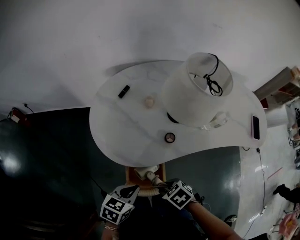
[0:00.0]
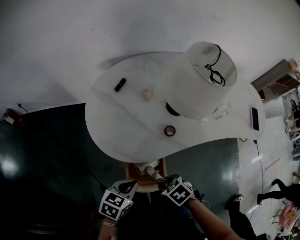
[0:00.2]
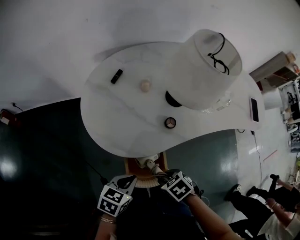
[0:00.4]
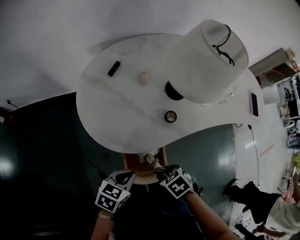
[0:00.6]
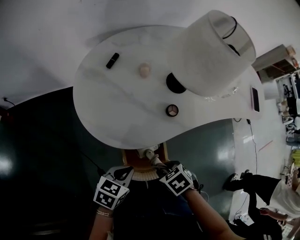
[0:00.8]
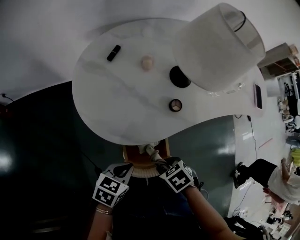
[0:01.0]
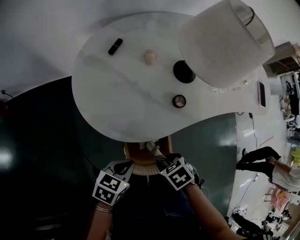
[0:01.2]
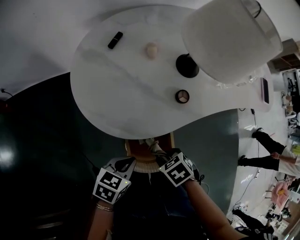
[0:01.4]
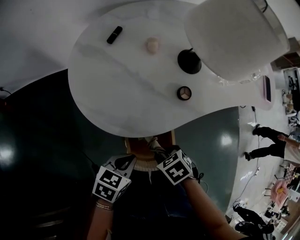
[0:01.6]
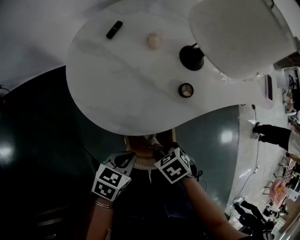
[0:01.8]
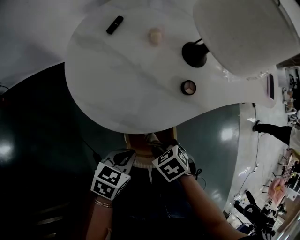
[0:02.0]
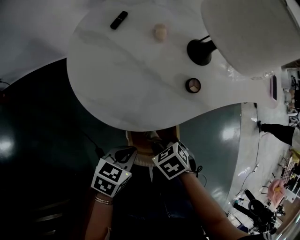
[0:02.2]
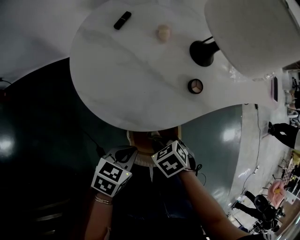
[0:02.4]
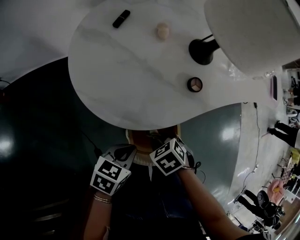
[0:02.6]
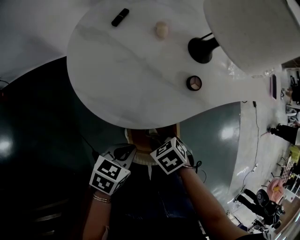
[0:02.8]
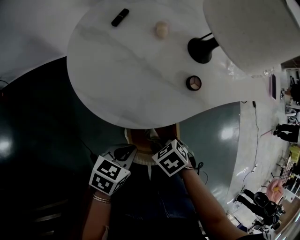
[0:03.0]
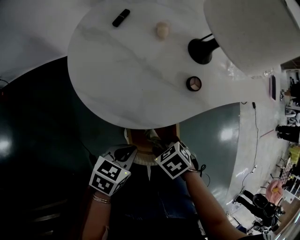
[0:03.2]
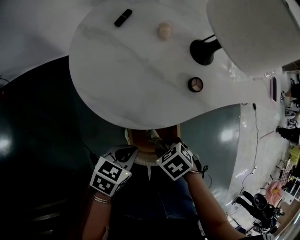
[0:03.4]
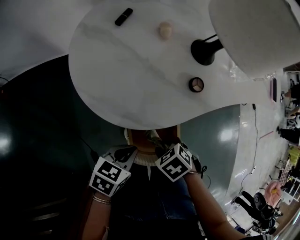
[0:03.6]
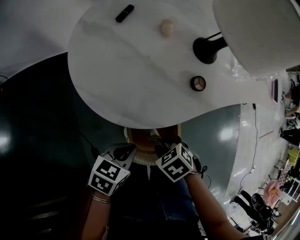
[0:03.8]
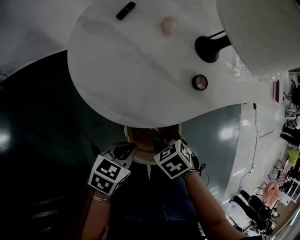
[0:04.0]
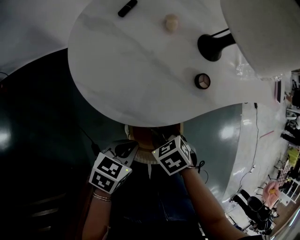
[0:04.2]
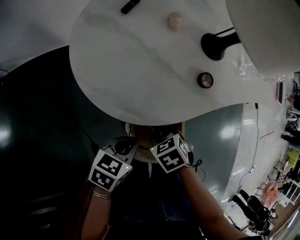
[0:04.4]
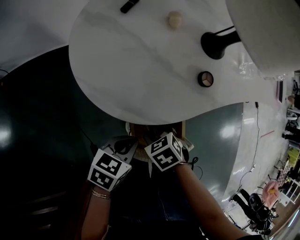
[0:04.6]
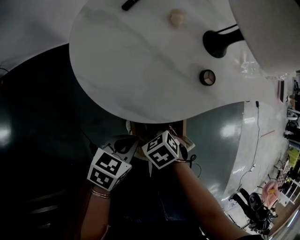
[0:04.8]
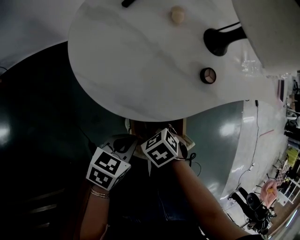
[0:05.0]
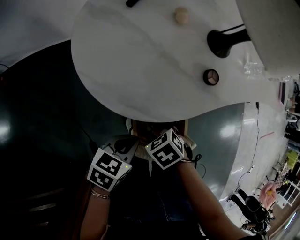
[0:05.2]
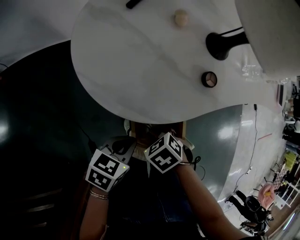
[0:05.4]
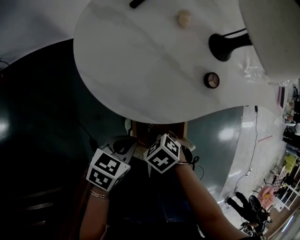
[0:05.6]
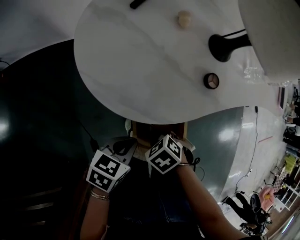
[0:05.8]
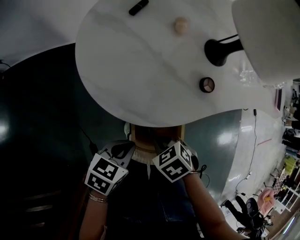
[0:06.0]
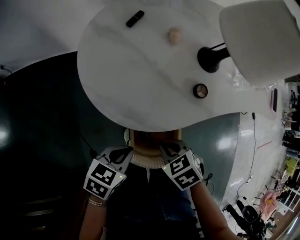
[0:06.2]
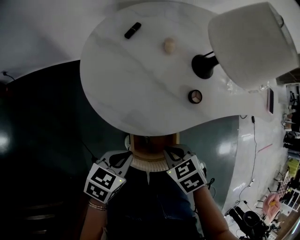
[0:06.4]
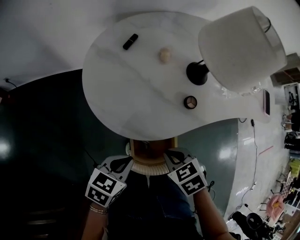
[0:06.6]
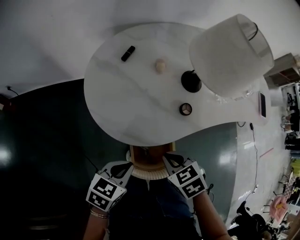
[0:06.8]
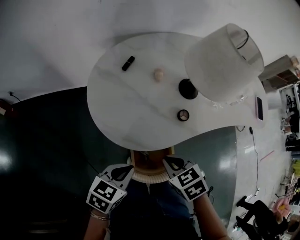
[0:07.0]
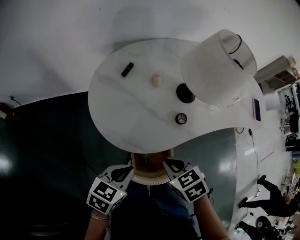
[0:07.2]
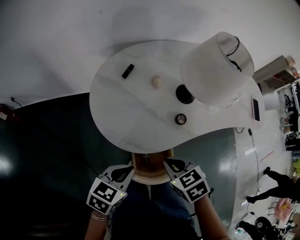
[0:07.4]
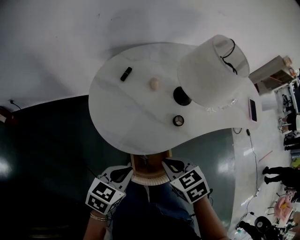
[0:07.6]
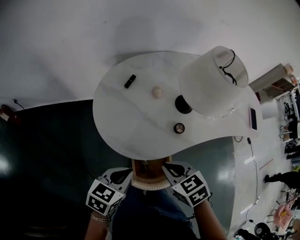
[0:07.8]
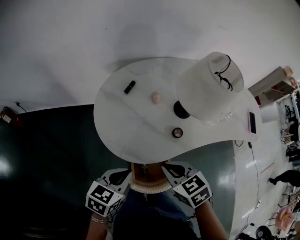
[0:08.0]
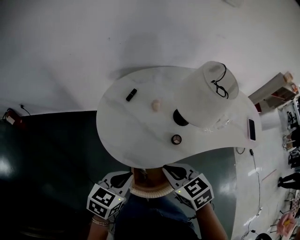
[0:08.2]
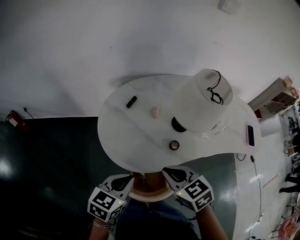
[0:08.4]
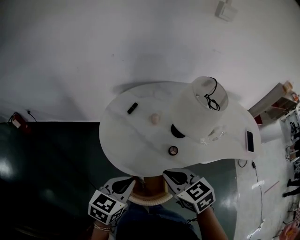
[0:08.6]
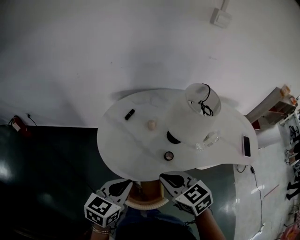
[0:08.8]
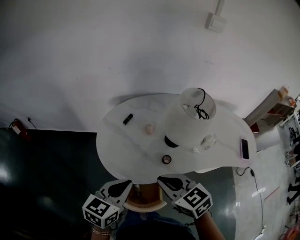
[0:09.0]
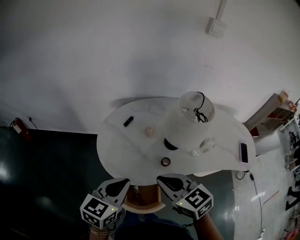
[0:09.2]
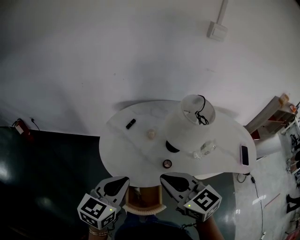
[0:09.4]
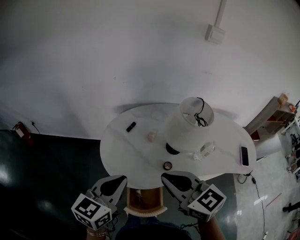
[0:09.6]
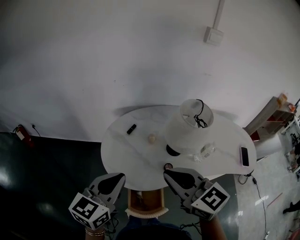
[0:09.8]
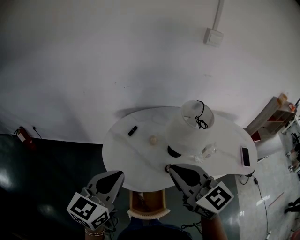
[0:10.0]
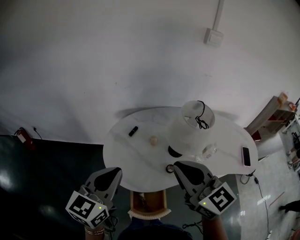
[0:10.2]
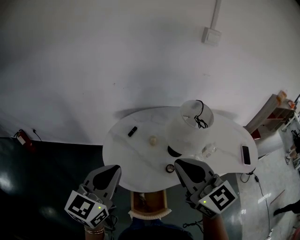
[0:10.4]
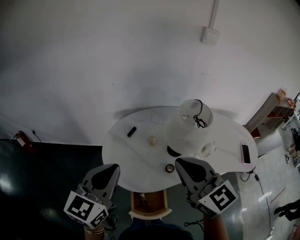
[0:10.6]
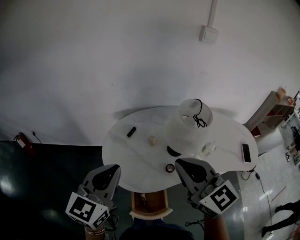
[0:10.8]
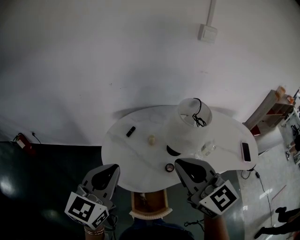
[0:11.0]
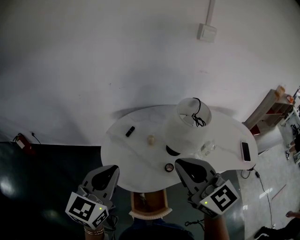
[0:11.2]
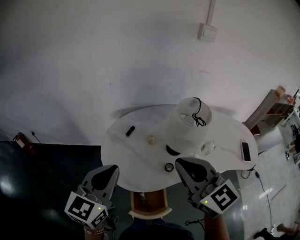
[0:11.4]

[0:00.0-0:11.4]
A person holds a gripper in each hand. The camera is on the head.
0:00.0 to 0:01.4: Both grippers move downward, approximately 10 cm.
0:01.4 to 0:02.8: The right gripper moves roughly 5 cm.
0:02.8 to 0:04.2: There are only small adjustments of the grippers.
0:04.2 to 0:05.6: The right gripper ends up approximately 5 cm from where it was, and closes its fingers.
0:05.6 to 0:07.2: Both grippers travel together upward, approximately 15 cm. The right gripper changes its angle by about 30 degrees.
0:07.2 to 0:08.6: The two grippers go some 10 cm upward. The right gripper turns by approximately 20 degrees.
0:08.6 to 0:10.0: Both grippers travel together upward, about 20 cm. The right gripper points its fingers roughly 30 degrees further upward, while the left gripper rotates some 20 degrees.
0:10.0 to 0:11.4: There are only small adjustments of the grippers.

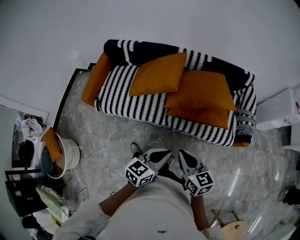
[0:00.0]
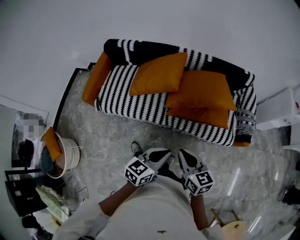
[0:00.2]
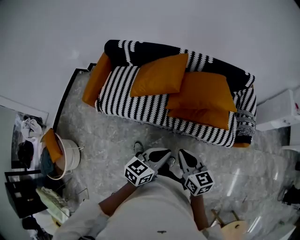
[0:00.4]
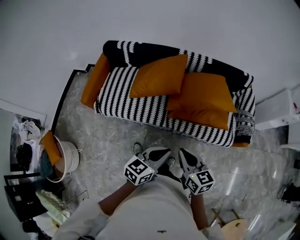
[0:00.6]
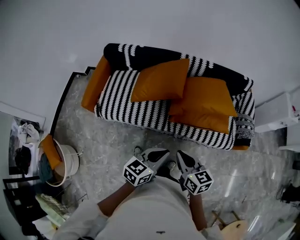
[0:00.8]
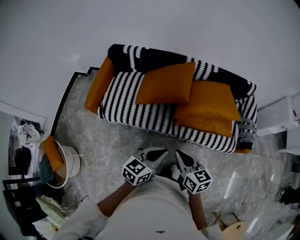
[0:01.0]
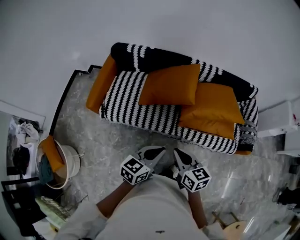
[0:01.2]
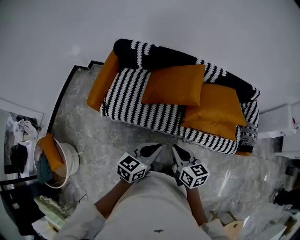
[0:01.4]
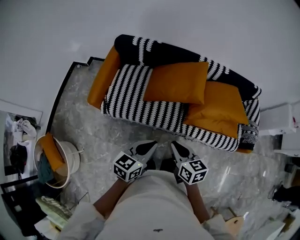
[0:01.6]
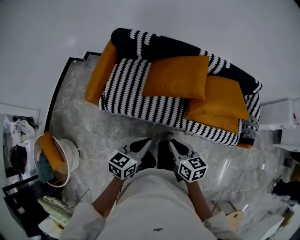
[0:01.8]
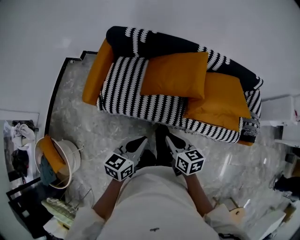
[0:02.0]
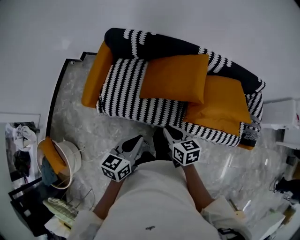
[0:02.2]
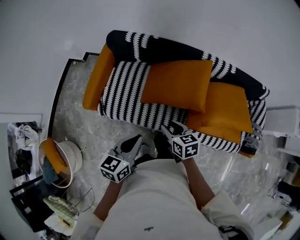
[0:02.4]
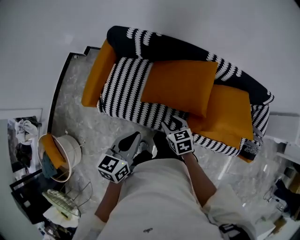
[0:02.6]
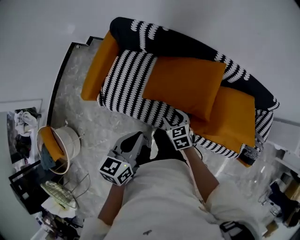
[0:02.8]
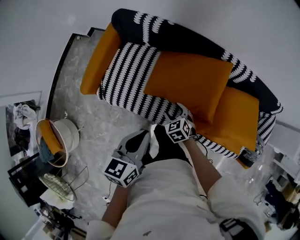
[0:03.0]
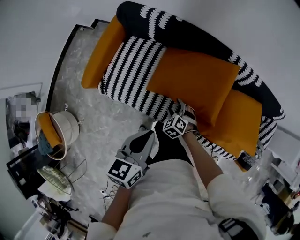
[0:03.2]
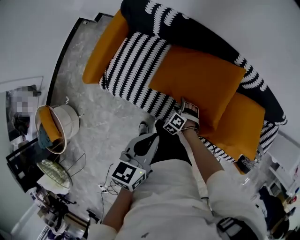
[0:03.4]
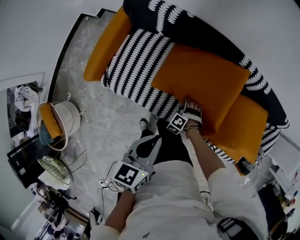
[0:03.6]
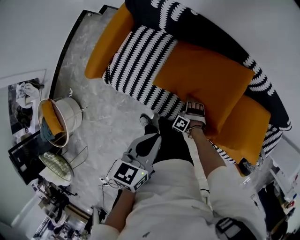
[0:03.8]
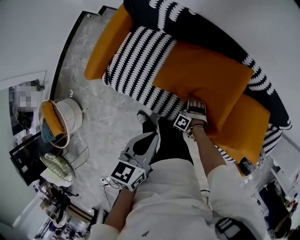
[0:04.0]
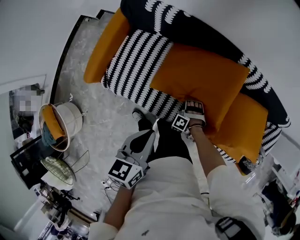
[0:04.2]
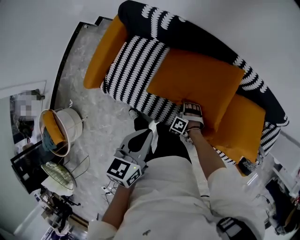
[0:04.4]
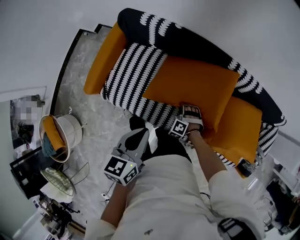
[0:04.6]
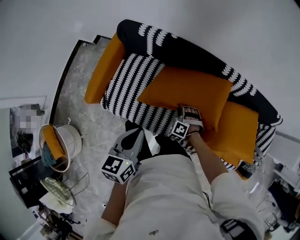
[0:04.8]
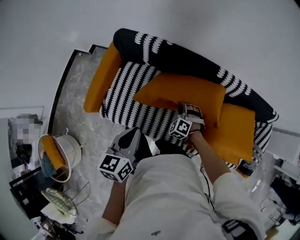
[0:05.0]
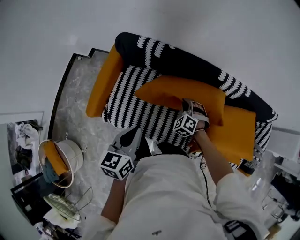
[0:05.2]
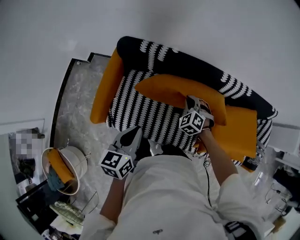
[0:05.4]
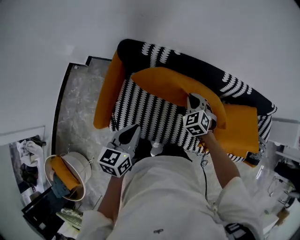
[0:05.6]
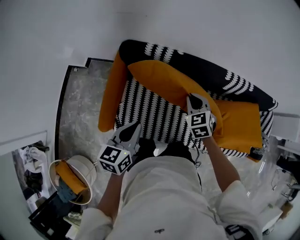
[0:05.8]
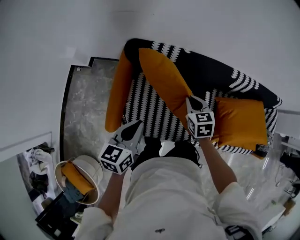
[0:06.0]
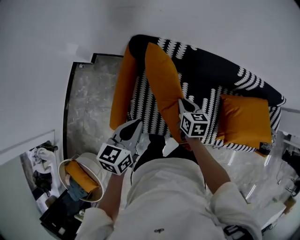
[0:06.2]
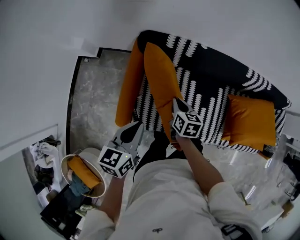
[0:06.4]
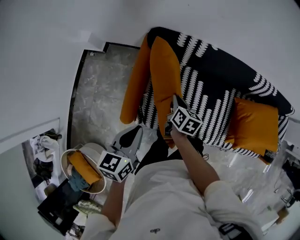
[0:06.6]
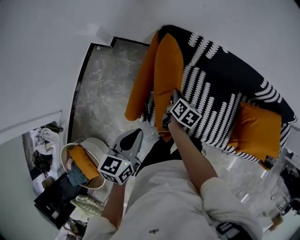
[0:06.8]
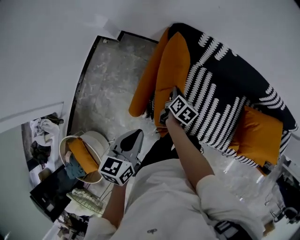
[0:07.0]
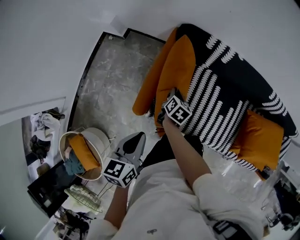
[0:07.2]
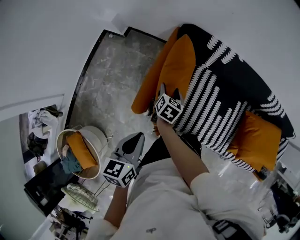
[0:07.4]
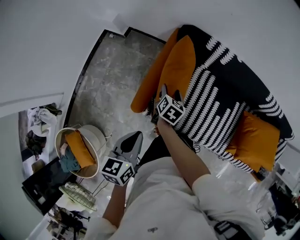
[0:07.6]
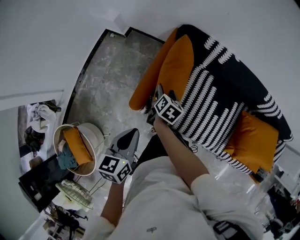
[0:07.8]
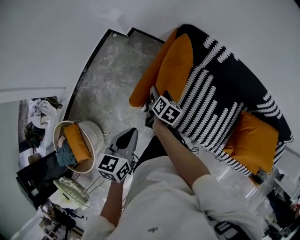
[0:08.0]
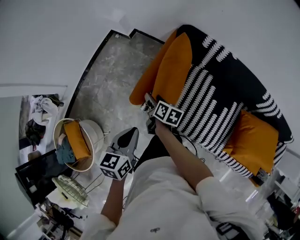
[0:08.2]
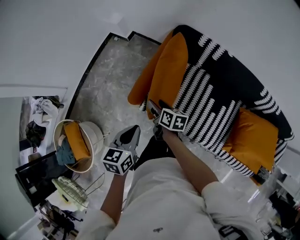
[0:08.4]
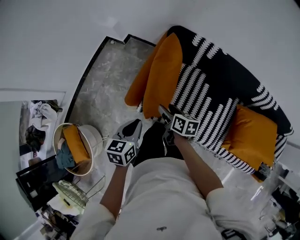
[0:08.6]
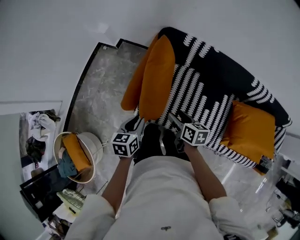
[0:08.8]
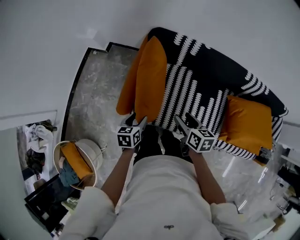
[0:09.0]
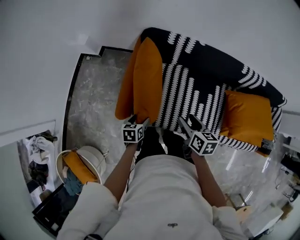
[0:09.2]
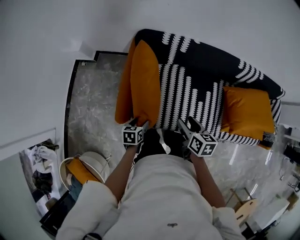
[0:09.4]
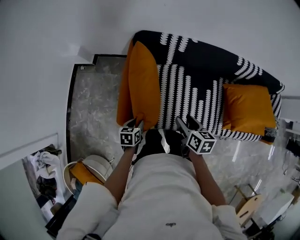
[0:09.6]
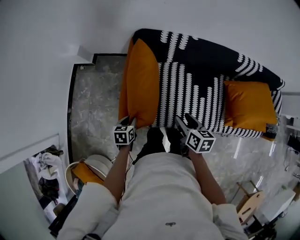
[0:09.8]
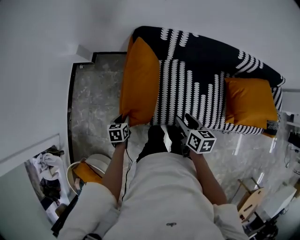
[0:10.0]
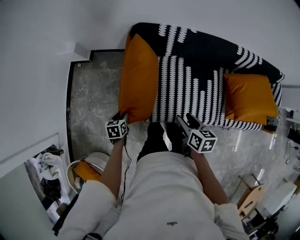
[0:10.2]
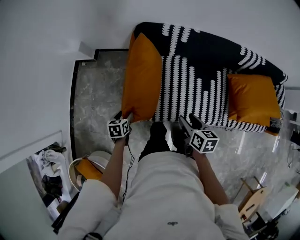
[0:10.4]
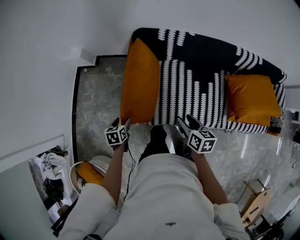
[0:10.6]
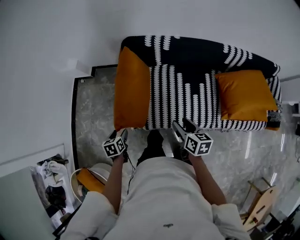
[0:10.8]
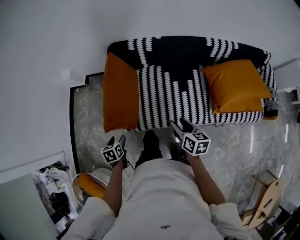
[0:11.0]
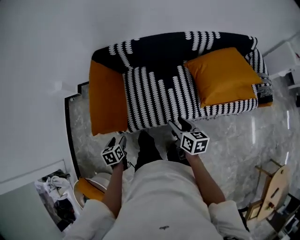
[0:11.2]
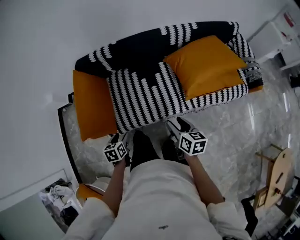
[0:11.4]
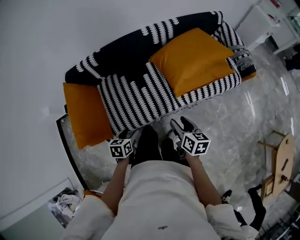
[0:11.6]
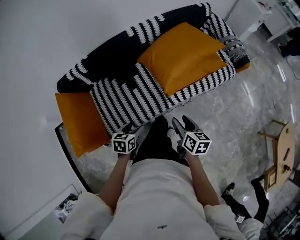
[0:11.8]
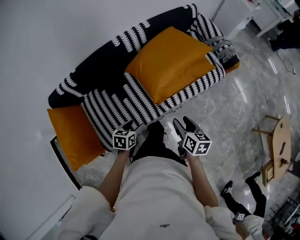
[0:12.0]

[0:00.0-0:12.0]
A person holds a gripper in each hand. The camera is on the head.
0:00.0 to 0:01.6: Both grippers travel together to the left, approximately 30 cm.
0:01.6 to 0:03.0: The right gripper heads forward and downward, covering approximately 40 cm, swivels roughly 50 degrees, and opens up; the left gripper moves forward, approximately 25 cm, and swivels approximately 30 degrees.
0:03.0 to 0:04.4: The right gripper heads downward, covering roughly 15 cm, rolls counterclockwise, seen from behind, by approximately 50 degrees, and closes up.
0:04.4 to 0:06.0: The right gripper is displaced upward, to the left and forward by some 35 cm, twists some 80 degrees clockwise, seen from behind, and closes up. The left gripper travels to the left by roughly 30 cm.
0:06.0 to 0:07.6: The right gripper moves to the left and downward, roughly 30 cm, changes its angle by roughly 30 degrees, and opens its fingers. The left gripper moves to the left and backward, about 20 cm, and changes its angle by approximately 20 degrees.
0:07.6 to 0:09.0: The left gripper goes about 15 cm downward, and opens; the right gripper shifts by approximately 25 cm, and rotates approximately 20 degrees.
0:09.0 to 0:10.4: The right gripper ends up some 5 cm from where it was. The left gripper moves to the left and downward, approximately 15 cm, and closes, then reopens.
0:10.4 to 0:12.0: Both grippers are carried approximately 60 cm. The left gripper turns by roughly 50 degrees. The right gripper changes its angle by some 40 degrees.
